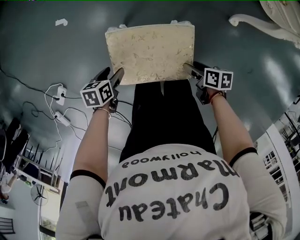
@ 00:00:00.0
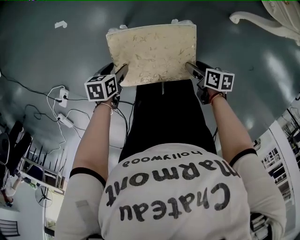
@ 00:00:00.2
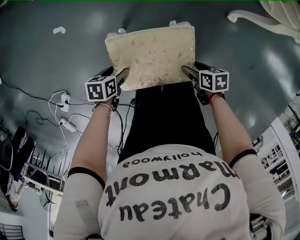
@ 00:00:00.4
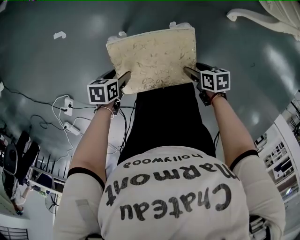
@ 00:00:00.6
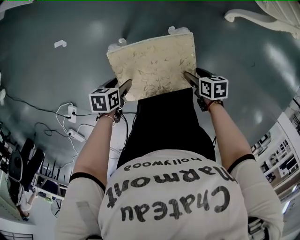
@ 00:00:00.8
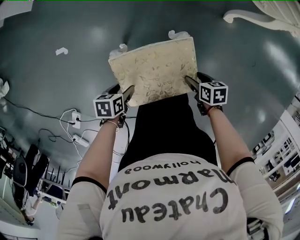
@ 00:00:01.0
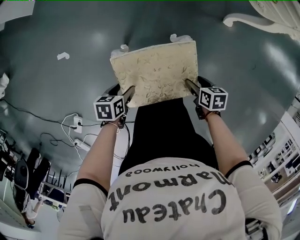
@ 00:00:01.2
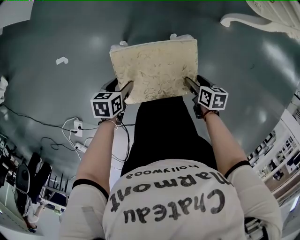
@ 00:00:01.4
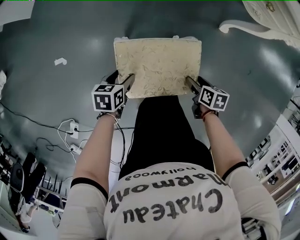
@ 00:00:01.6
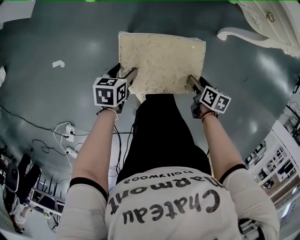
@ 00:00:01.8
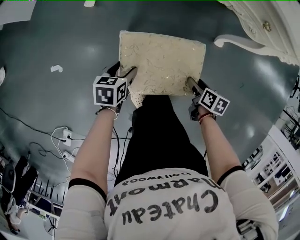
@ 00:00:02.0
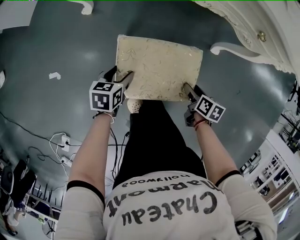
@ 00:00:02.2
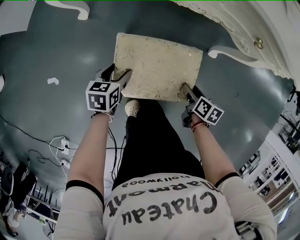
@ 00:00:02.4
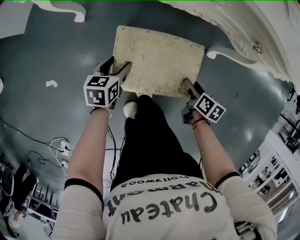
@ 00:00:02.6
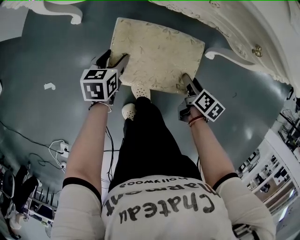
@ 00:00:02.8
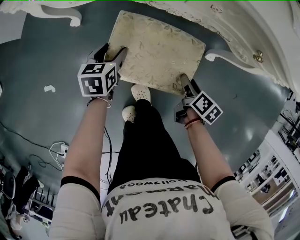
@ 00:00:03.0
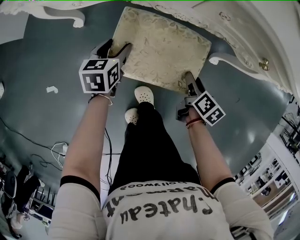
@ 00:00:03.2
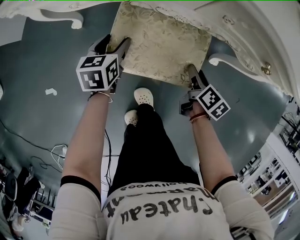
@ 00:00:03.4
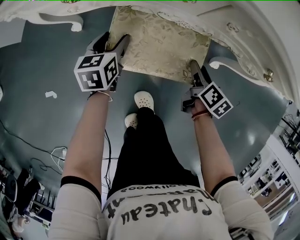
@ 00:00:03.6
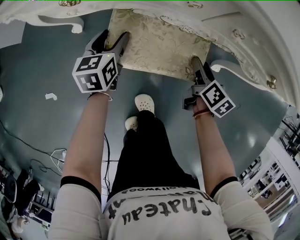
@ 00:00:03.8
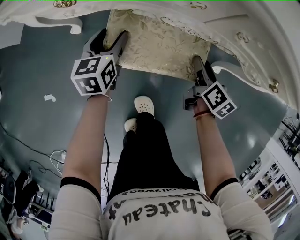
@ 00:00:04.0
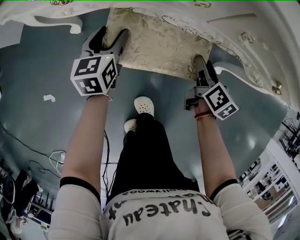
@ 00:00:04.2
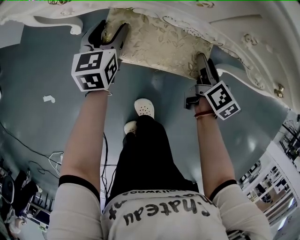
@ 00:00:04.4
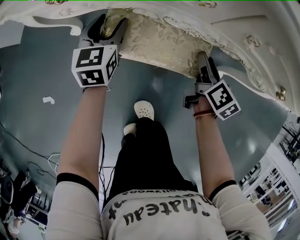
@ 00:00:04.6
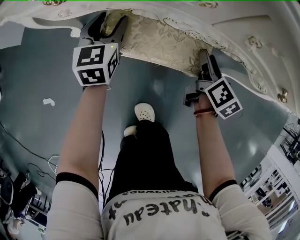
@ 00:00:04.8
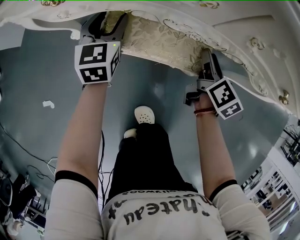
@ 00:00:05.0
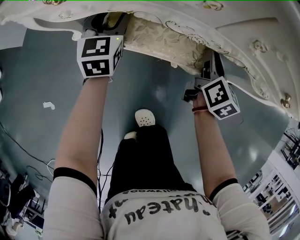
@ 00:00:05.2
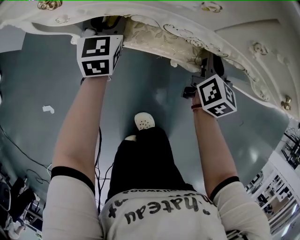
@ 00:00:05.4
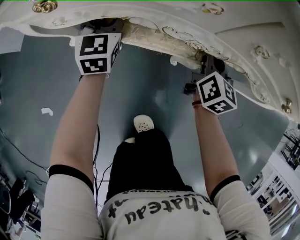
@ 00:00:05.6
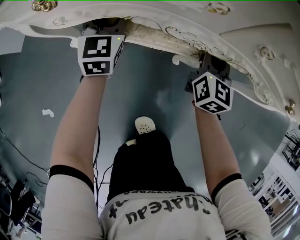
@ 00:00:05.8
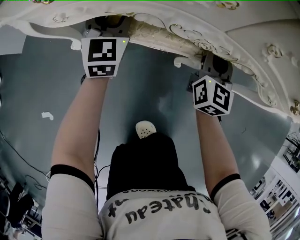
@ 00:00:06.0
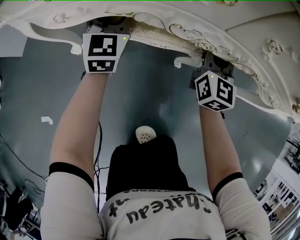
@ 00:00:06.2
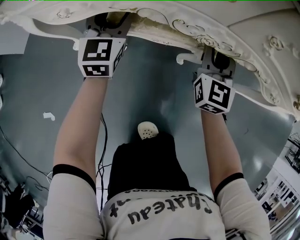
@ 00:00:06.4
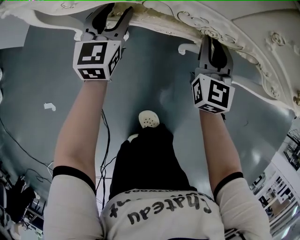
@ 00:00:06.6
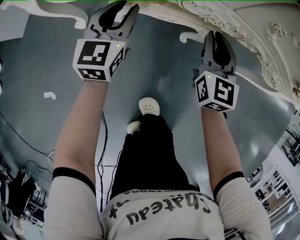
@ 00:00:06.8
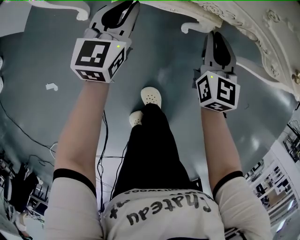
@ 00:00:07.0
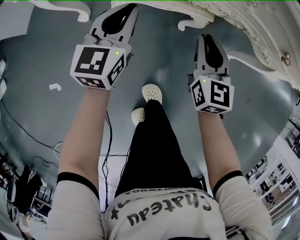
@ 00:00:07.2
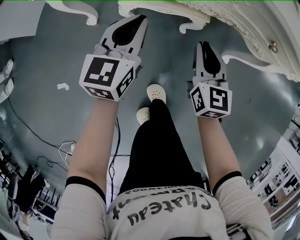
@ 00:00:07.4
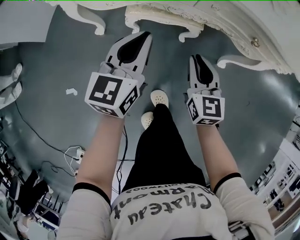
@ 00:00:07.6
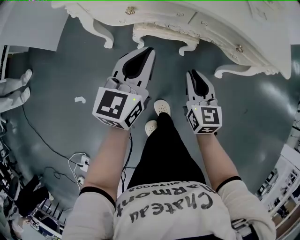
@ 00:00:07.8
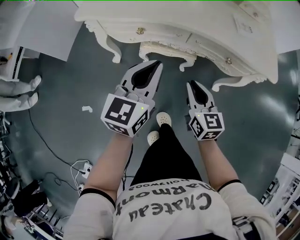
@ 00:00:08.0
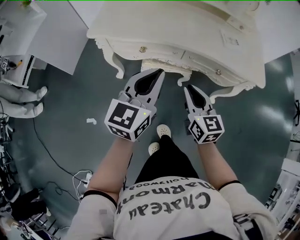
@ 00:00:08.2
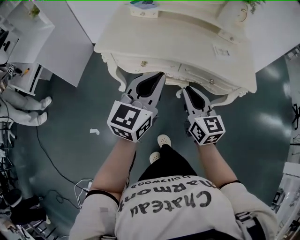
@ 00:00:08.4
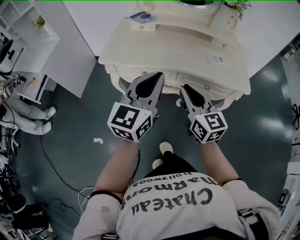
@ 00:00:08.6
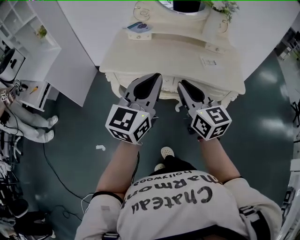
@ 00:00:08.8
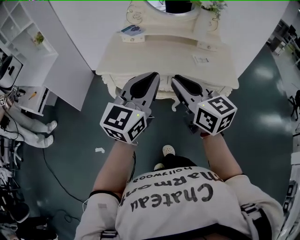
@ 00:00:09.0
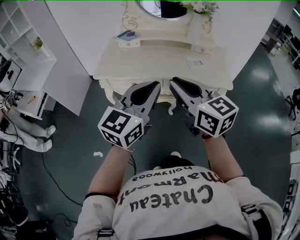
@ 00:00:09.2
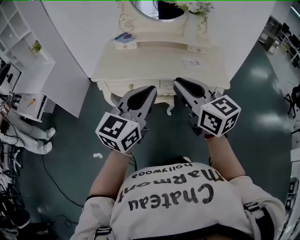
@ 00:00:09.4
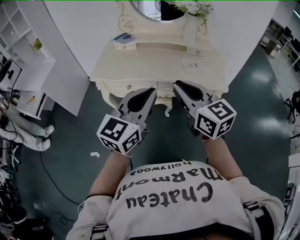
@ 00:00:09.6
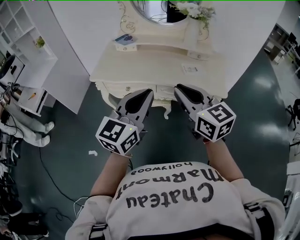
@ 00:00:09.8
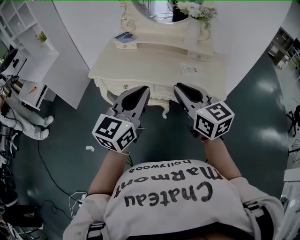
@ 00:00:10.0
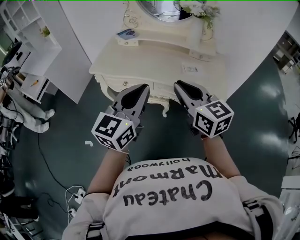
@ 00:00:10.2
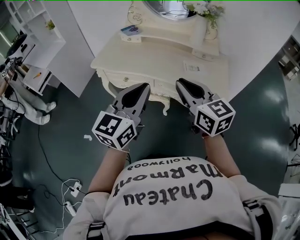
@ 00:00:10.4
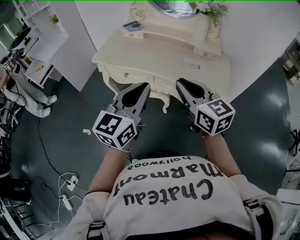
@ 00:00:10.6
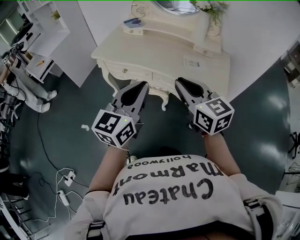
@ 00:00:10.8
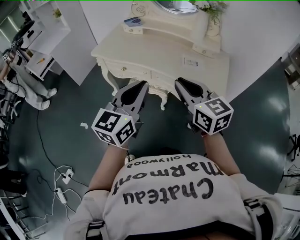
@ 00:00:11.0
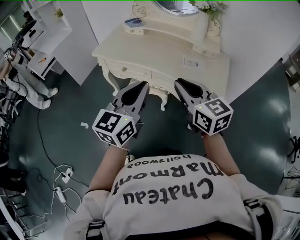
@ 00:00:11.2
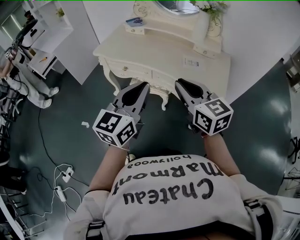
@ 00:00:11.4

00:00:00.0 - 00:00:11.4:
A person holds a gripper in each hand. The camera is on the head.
00:00:00.0 - 00:00:01.4: The right gripper changes its angle by some 20 degrees. The left gripper moves about 10 cm, and rotates roughly 20 degrees.
00:00:01.4 - 00:00:02.8: The grippers both shift forward by about 30 cm. The left gripper turns by roughly 20 degrees. Meanwhile the right gripper turns by some 30 degrees.
00:00:02.8 - 00:00:04.2: The grippers both shift forward by some 15 cm. The left gripper swivels some 20 degrees.
00:00:04.2 - 00:00:05.6: Both grippers travel together forward, about 10 cm. The left gripper rotates about 30 degrees, while the right gripper swivels about 30 degrees, and closes.
00:00:05.6 - 00:00:07.2: The grippers both shift backward and upward by roughly 15 cm. The right gripper swivels approximately 20 degrees; the left gripper closes its fingers.
00:00:07.2 - 00:00:08.6: The two grippers go some 50 cm upward. The right gripper rotates some 20 degrees.
00:00:08.6 - 00:00:10.0: The right gripper moves upward and to the right, approximately 15 cm. Meanwhile the left gripper goes some 15 cm to the right, upward and backward.
00:00:10.0 - 00:00:11.4: Both grippers move to the right, about 10 cm.

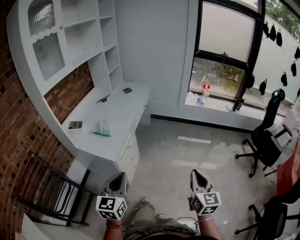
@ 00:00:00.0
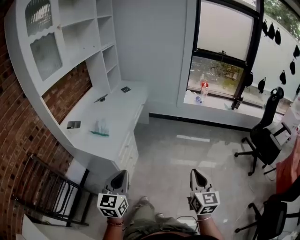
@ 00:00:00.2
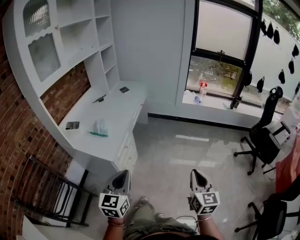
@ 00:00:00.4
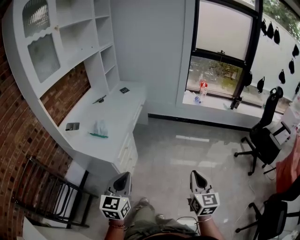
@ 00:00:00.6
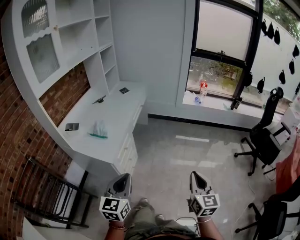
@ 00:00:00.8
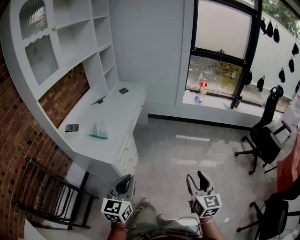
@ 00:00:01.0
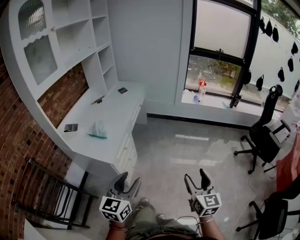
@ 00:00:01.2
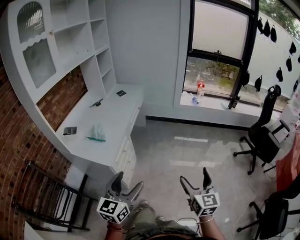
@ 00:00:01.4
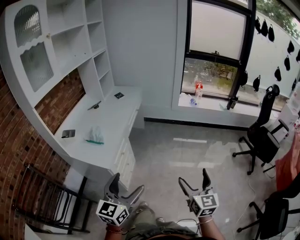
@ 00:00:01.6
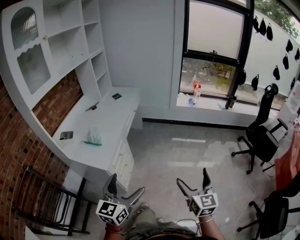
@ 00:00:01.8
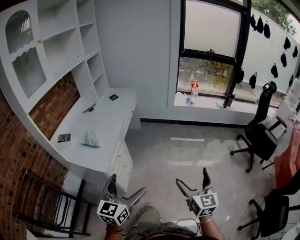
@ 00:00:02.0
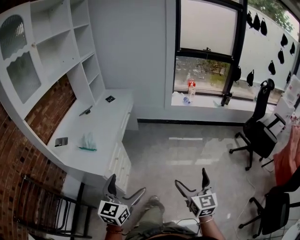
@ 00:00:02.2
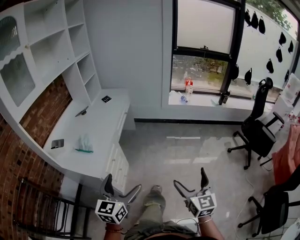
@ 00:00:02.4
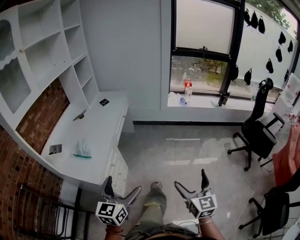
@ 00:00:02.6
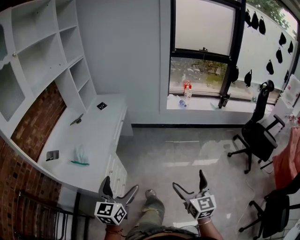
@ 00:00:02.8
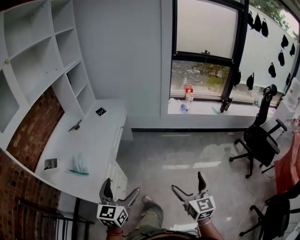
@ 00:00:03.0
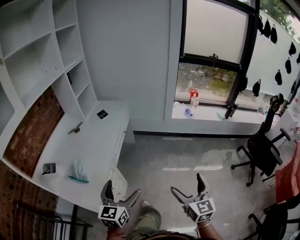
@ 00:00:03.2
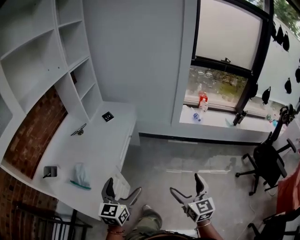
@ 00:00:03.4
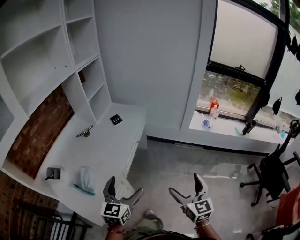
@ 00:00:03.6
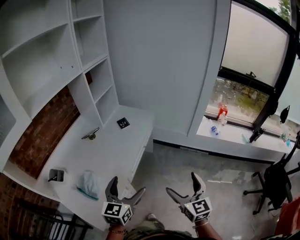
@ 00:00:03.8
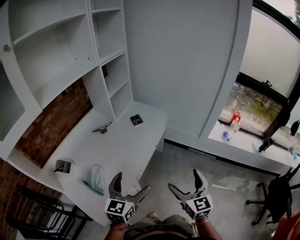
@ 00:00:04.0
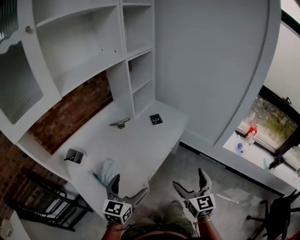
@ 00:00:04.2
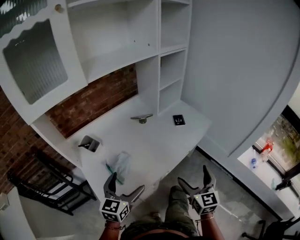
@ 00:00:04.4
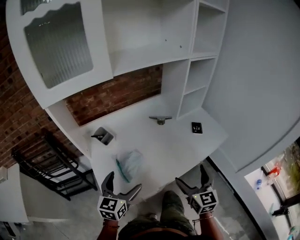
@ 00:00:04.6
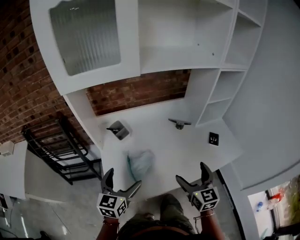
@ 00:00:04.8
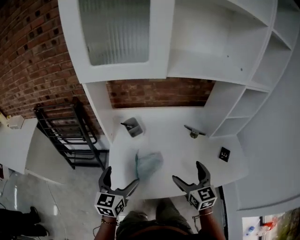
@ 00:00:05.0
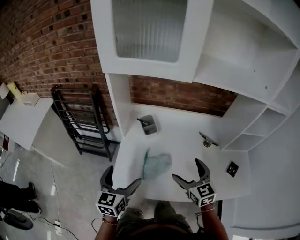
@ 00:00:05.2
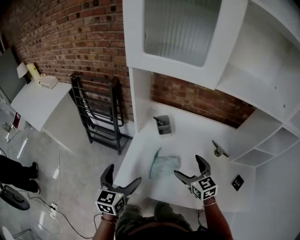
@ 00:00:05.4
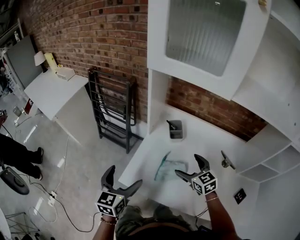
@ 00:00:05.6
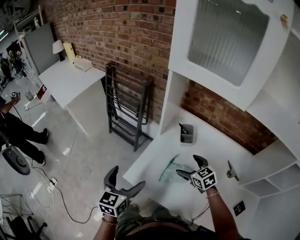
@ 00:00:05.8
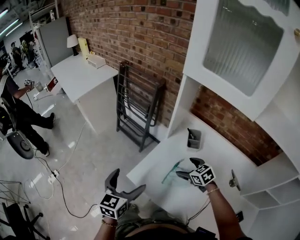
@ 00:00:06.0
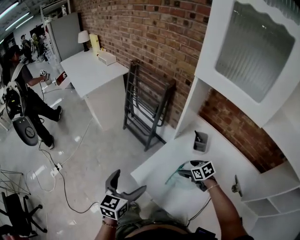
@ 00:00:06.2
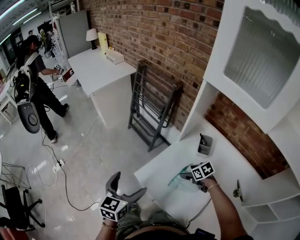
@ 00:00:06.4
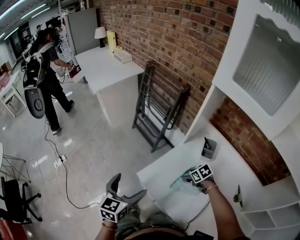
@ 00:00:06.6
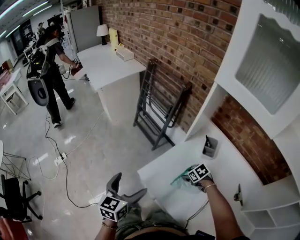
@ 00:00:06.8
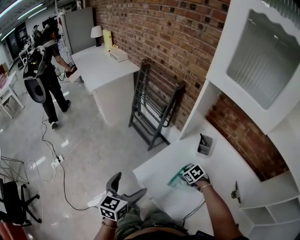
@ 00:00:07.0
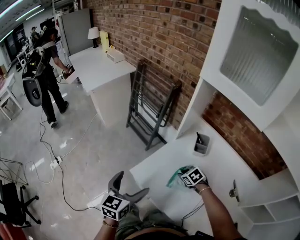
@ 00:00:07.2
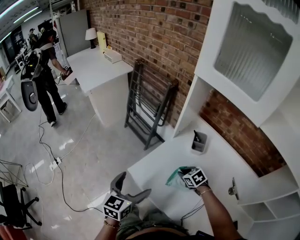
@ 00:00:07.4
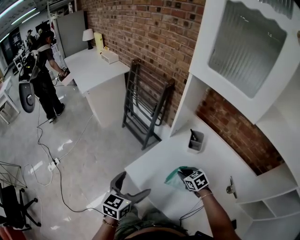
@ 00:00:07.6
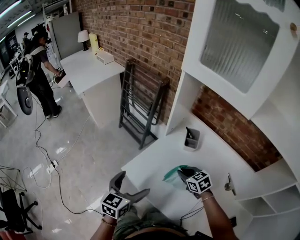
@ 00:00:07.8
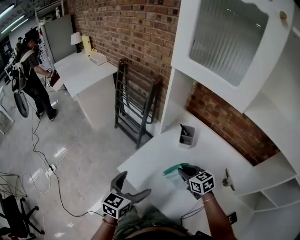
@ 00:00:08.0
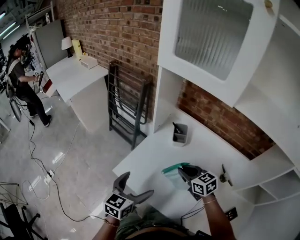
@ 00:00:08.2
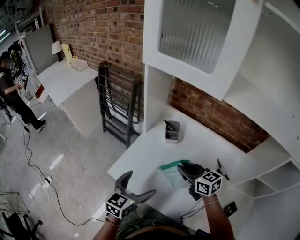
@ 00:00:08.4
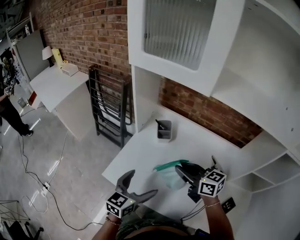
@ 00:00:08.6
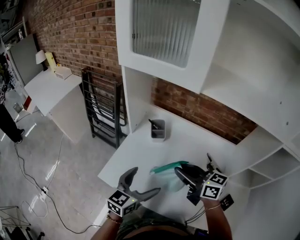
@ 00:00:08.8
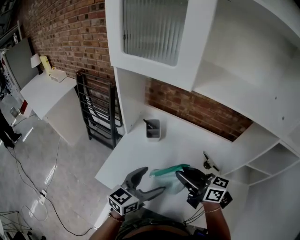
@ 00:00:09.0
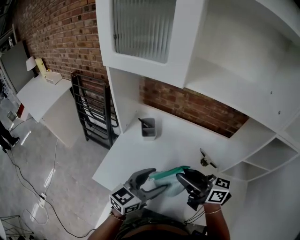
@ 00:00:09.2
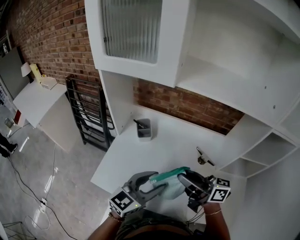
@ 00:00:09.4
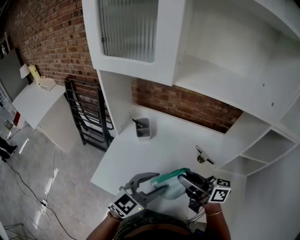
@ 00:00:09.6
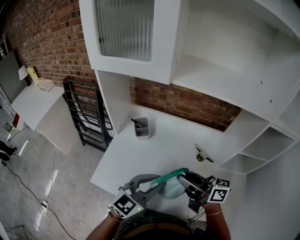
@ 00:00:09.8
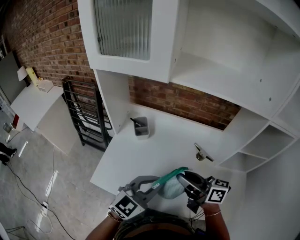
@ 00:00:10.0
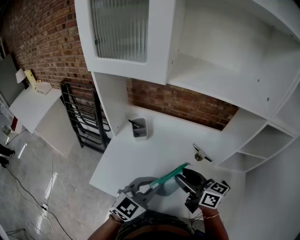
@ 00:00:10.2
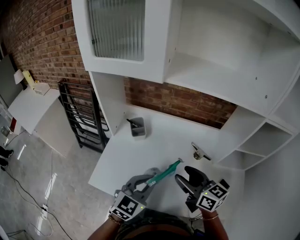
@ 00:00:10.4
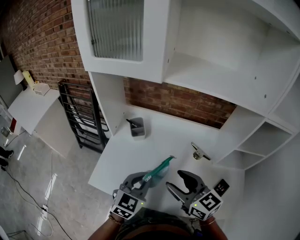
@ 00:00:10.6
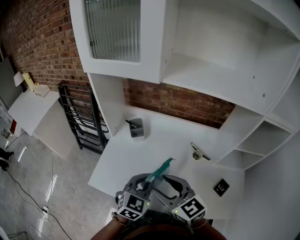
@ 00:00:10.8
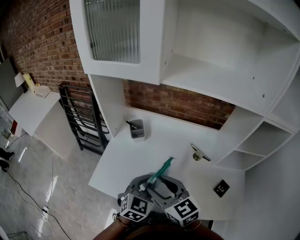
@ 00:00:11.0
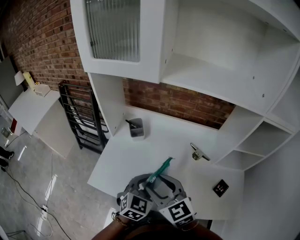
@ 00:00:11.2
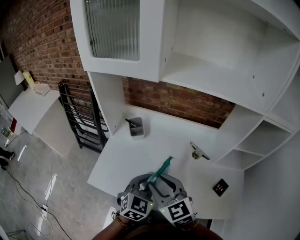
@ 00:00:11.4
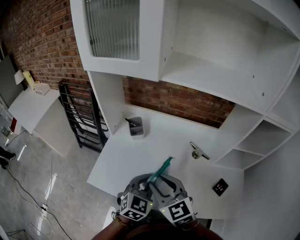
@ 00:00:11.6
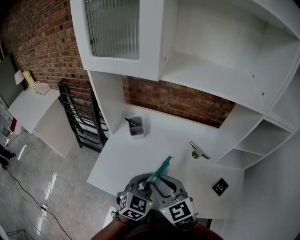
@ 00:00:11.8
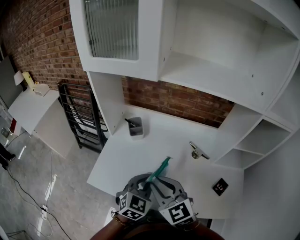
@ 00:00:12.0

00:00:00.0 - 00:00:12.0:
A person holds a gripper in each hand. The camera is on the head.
00:00:00.0 - 00:00:01.6: The right gripper opens. Meanwhile the left gripper goes roughly 5 cm to the right, and opens.
00:00:01.6 - 00:00:03.0: The grippers both shift forward by approximately 20 cm.
00:00:03.0 - 00:00:04.4: The left gripper ends up roughly 30 cm from where it was, and swivels approximately 40 degrees. Meanwhile the right gripper changes place by approximately 50 cm, and swivels roughly 40 degrees.
00:00:04.4 - 00:00:06.0: The right gripper ends up approximately 50 cm from where it was, and points its fingers about 40 degrees further downward. The left gripper changes place by about 20 cm, and turns by about 80 degrees.
00:00:06.0 - 00:00:07.6: The right gripper moves roughly 10 cm downward and comes back, and closes up; the left gripper moves backward, about 5 cm, and moves some 5 cm to the left and comes back.
00:00:07.6 - 00:00:09.0: The left gripper shifts approximately 25 cm to the right, and turns by approximately 40 degrees. The right gripper is displaced upward, backward and to the right by some 30 cm, and tilts its fingers about 50 degrees upward.
00:00:09.0 - 00:00:10.4: The left gripper shifts by some 5 cm, swivels some 30 degrees, and closes its fingers; the right gripper moves to the right, some 5 cm, turns by some 30 degrees, and opens its fingers.
00:00:10.4 - 00:00:12.0: The right gripper heads to the left, covering some 10 cm, and rotates roughly 30 degrees.
